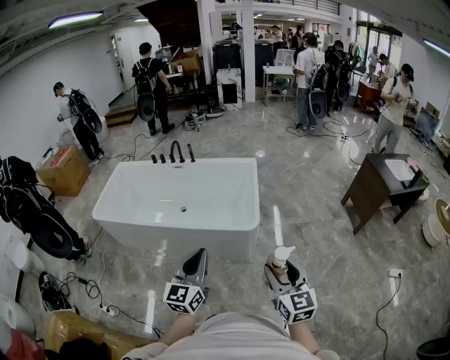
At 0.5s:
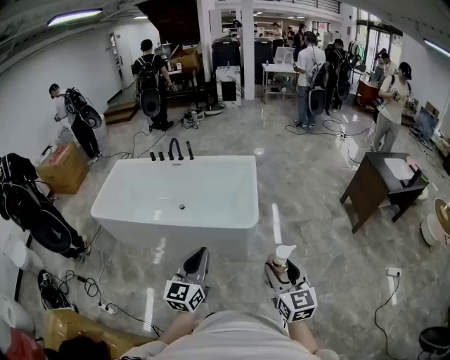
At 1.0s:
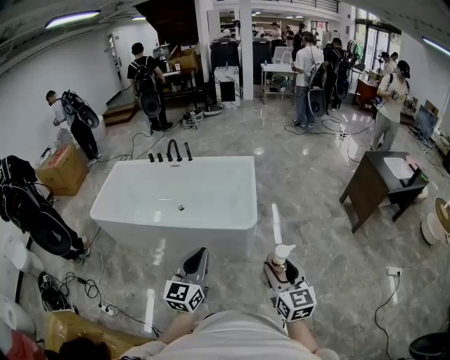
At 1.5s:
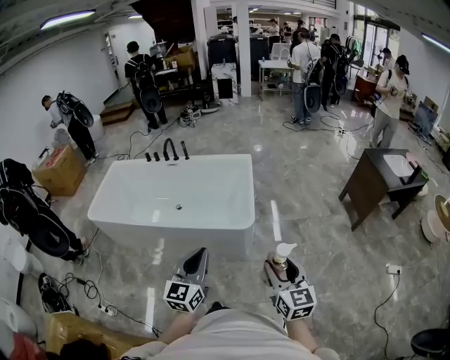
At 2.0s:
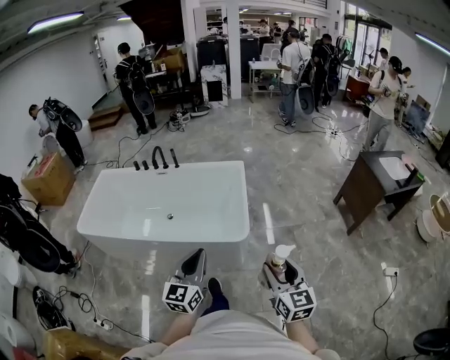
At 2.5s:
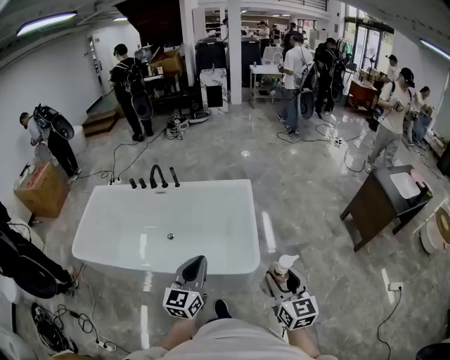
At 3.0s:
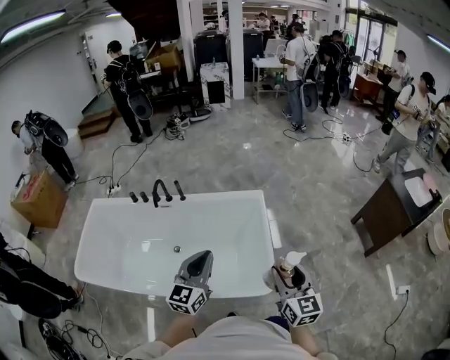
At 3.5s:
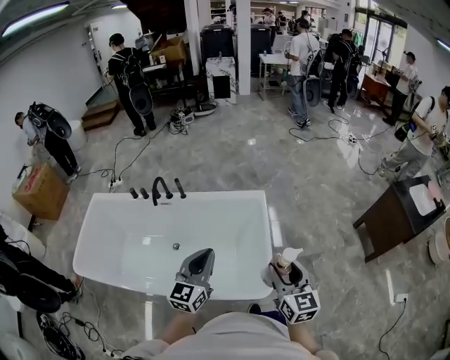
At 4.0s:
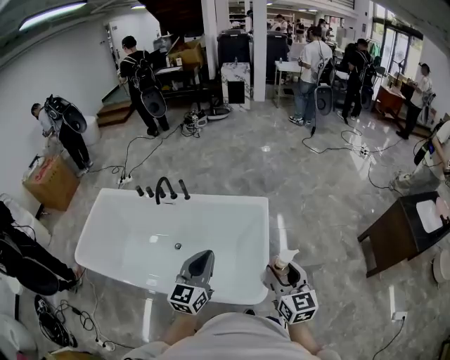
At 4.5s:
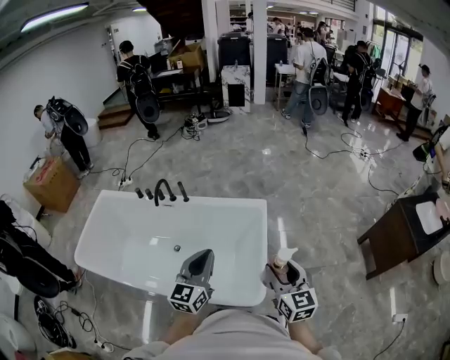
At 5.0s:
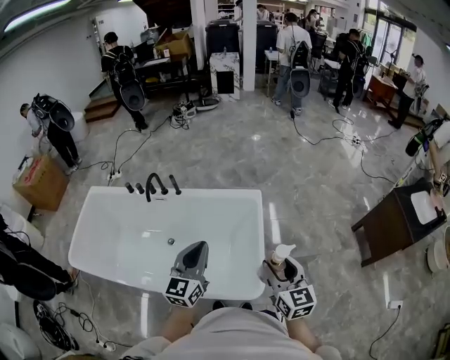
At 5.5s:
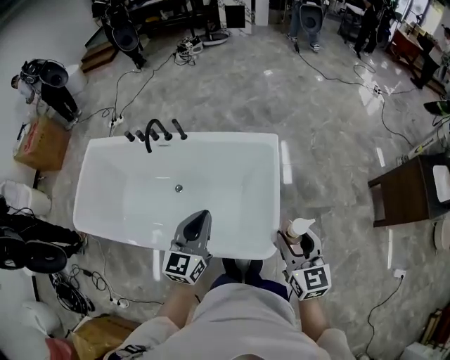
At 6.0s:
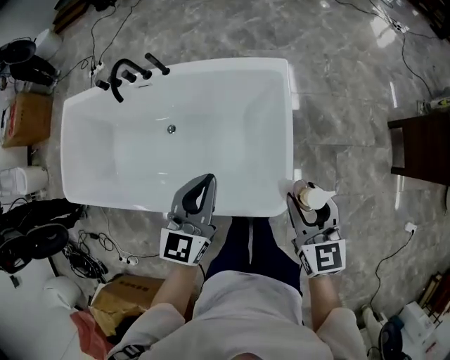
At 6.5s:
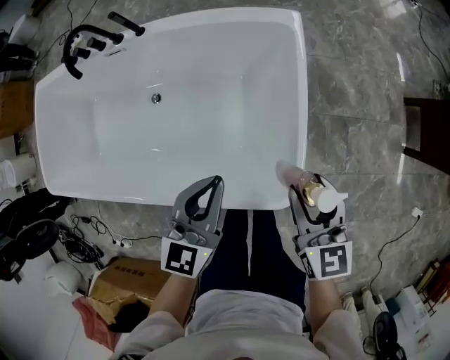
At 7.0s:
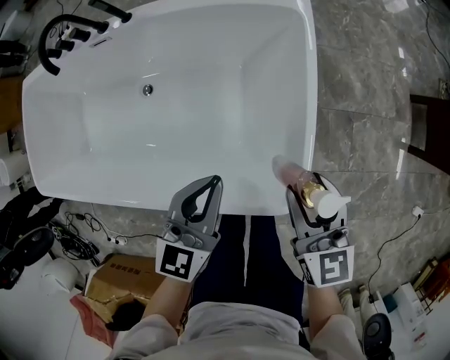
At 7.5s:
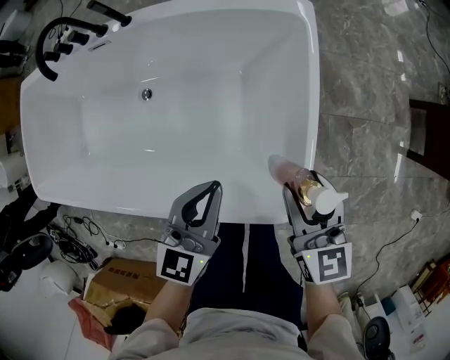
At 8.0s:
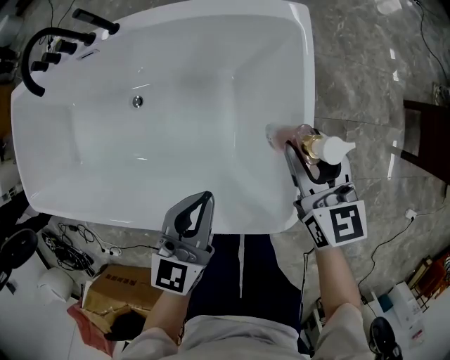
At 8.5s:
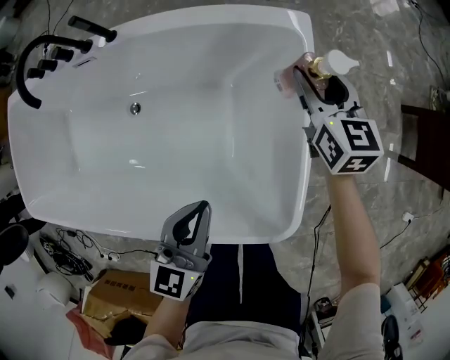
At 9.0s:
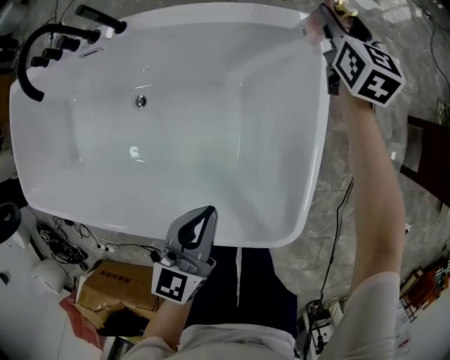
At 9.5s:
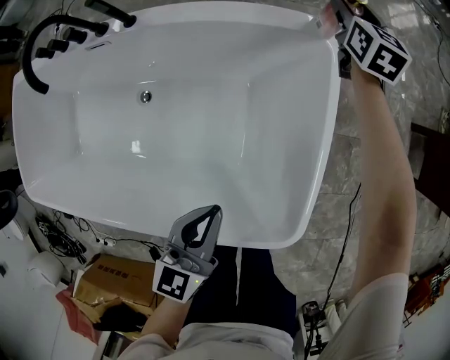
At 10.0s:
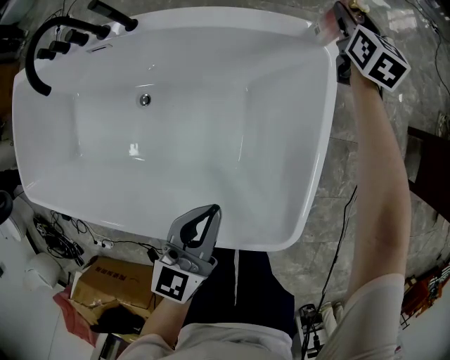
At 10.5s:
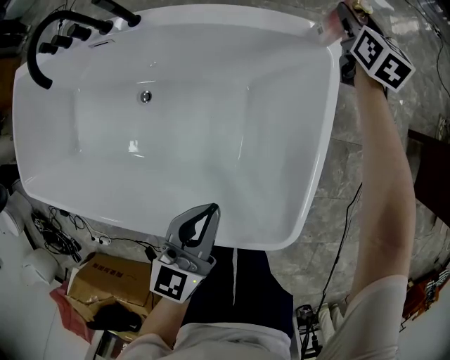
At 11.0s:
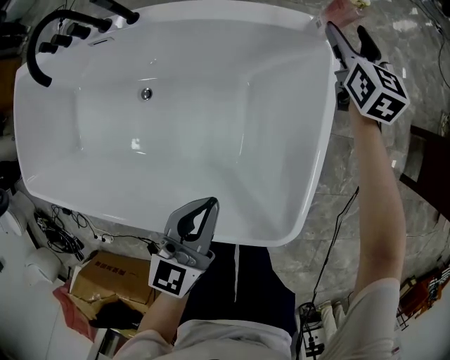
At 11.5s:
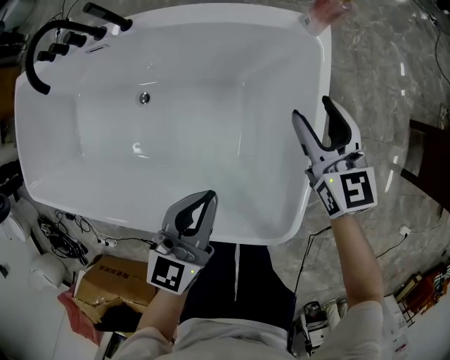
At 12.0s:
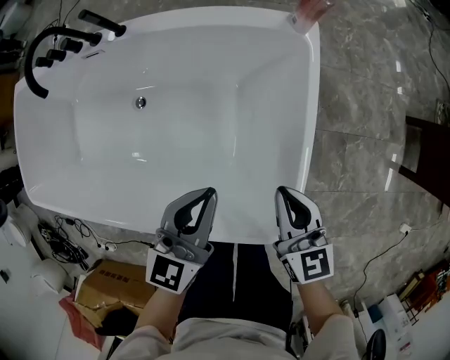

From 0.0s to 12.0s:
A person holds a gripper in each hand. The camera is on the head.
From 0.0s to 2.0s: The two grippers go roughly 10 cm forward.
From 2.0s to 4.0s: Both grippers move forward, approximately 40 cm.
From 4.0s to 6.0s: The two grippers go some 15 cm downward and forward.
From 6.0s to 8.0s: The left gripper heads downward, covering roughly 25 cm, while the right gripper heads downward and forward, covering approximately 25 cm.
From 8.0s to 10.0s: The right gripper is displaced forward by some 40 cm.
From 10.0s to 12.0s: The right gripper travels backward by roughly 40 cm, rotates some 20 degrees, and closes.

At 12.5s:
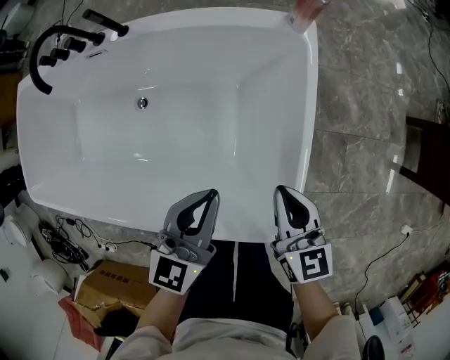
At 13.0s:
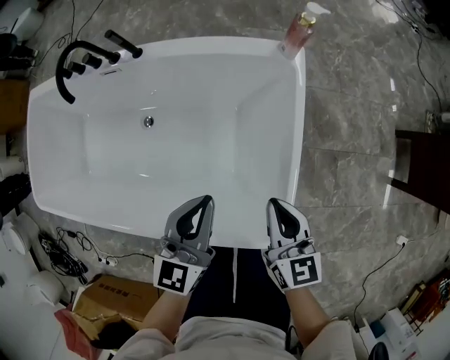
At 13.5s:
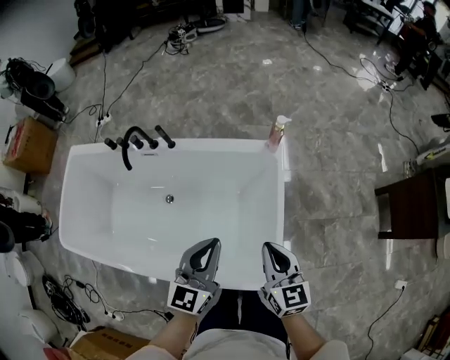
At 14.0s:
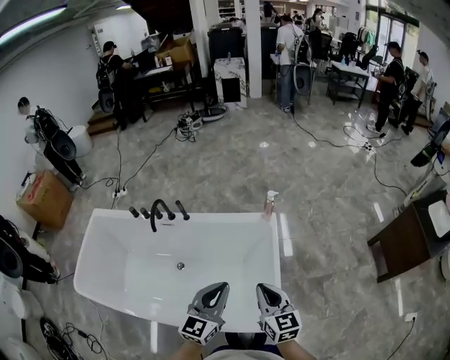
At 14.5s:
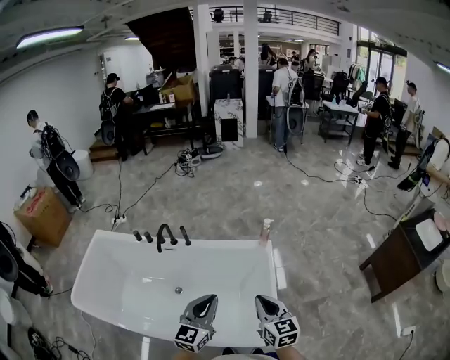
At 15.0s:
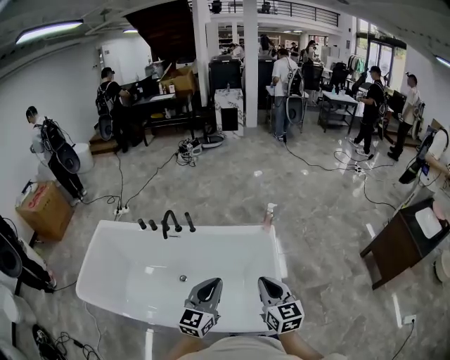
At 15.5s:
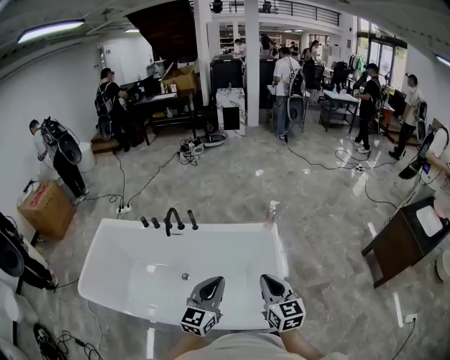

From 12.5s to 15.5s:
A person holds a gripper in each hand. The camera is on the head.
From 12.5s to 14.0s: The grippers both shift upward by approximately 30 cm.
From 14.0s to 15.5s: The right gripper shifts about 10 cm backward and upward. Meanwhile the left gripper goes about 10 cm to the left and backward.

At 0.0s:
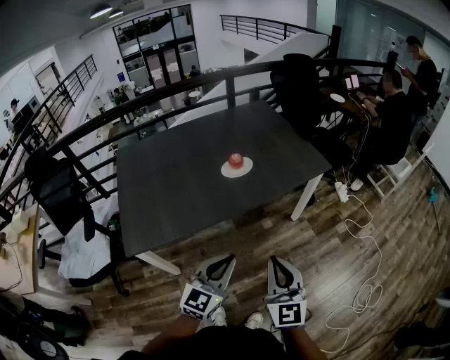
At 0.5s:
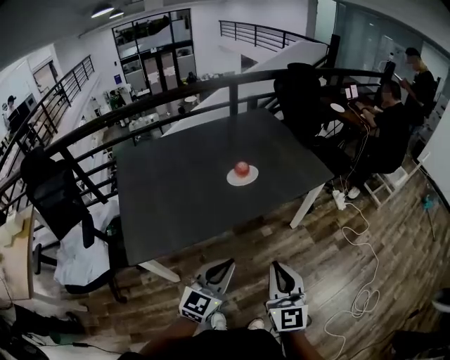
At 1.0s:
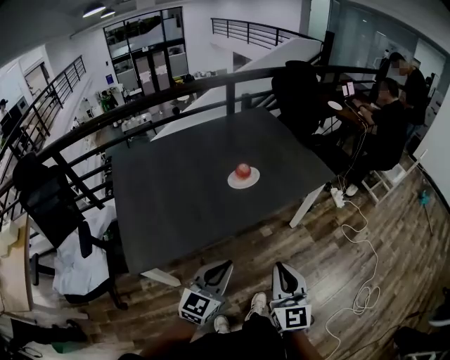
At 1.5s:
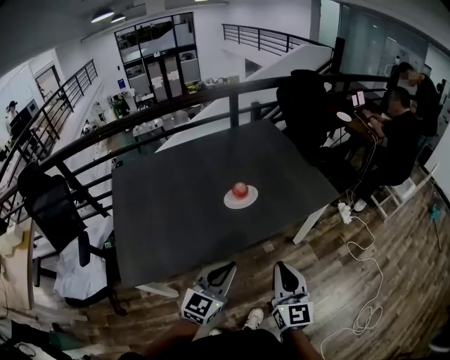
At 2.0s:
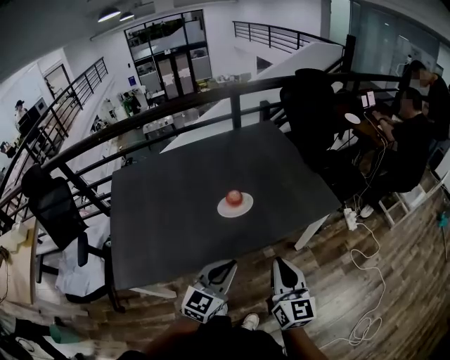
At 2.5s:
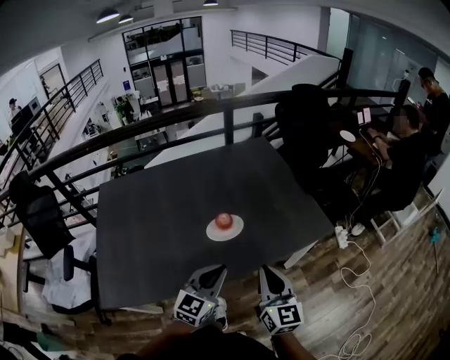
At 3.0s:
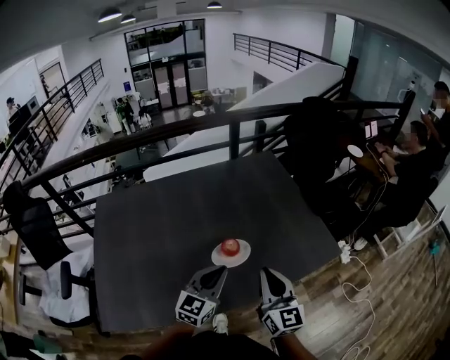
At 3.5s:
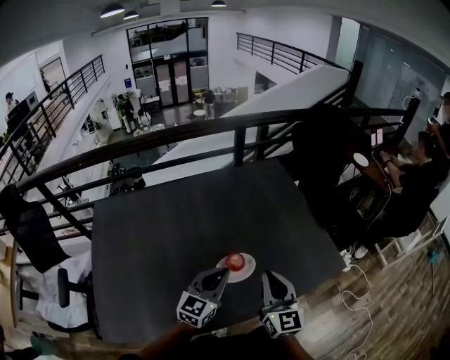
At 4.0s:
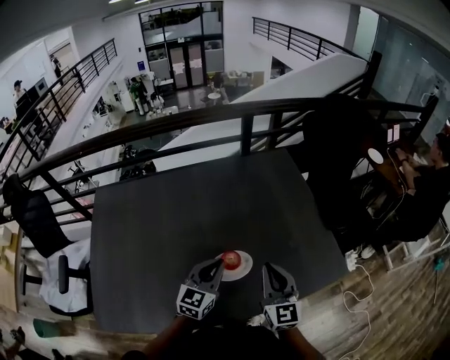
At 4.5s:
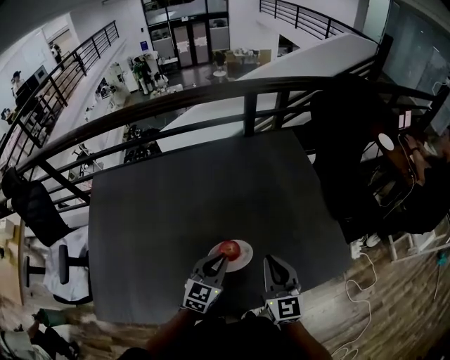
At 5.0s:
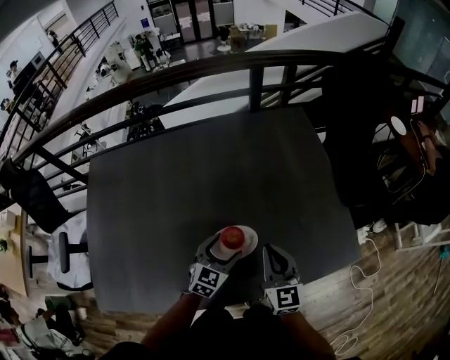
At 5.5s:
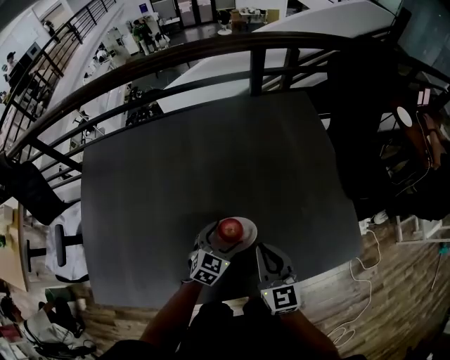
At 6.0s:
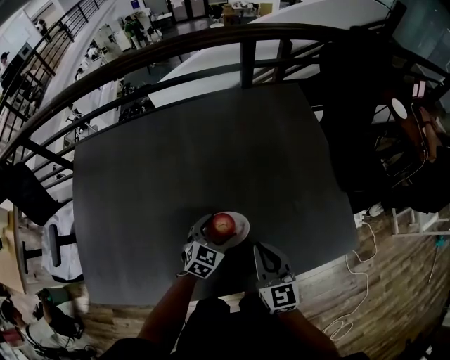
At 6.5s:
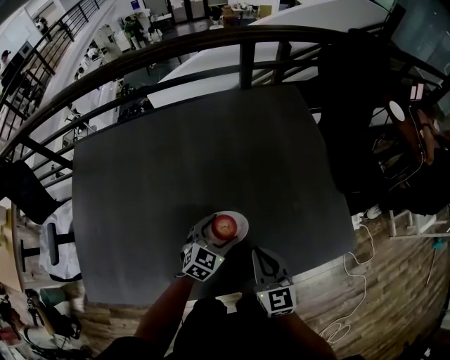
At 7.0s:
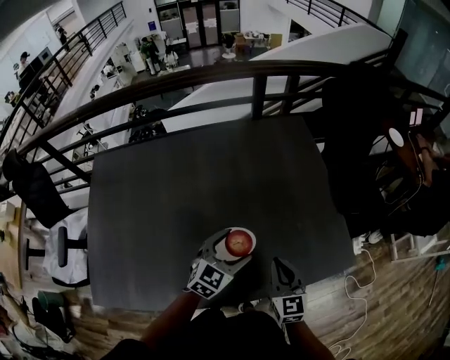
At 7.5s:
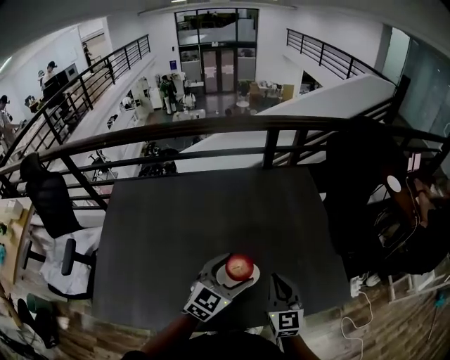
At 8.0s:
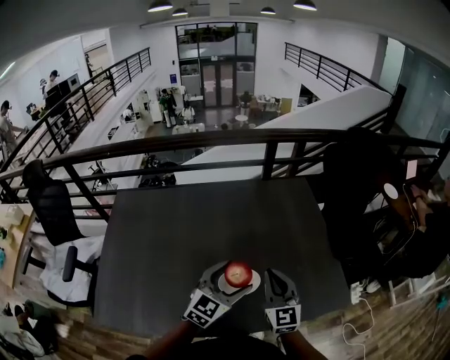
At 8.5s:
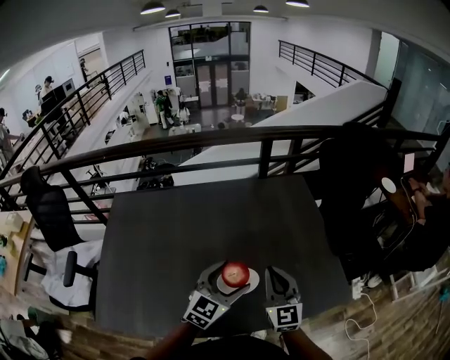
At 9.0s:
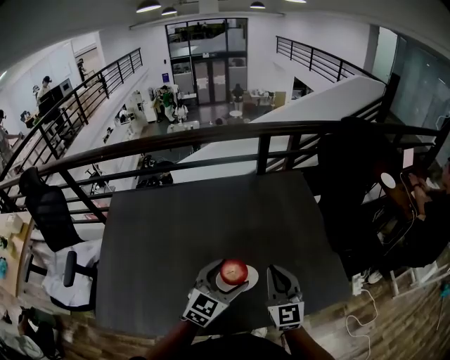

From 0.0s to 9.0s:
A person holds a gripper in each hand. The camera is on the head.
From 0.0s to 2.0s: The grippers both shift forward by approximately 20 cm.
From 2.0s to 4.5s: Both grippers travel together forward, about 30 cm.
From 4.5s to 7.0s: The left gripper goes downward and returns, roughly 10 cm each way, and opens up; the right gripper shifts some 5 cm downward.
From 7.0s to 9.0s: Both grippers travel together upward, roughly 10 cm. The right gripper turns by some 20 degrees.

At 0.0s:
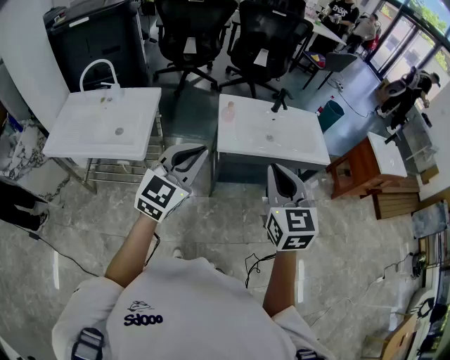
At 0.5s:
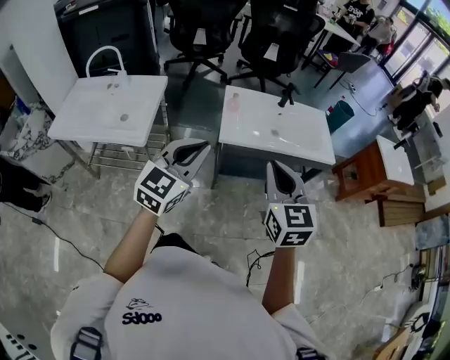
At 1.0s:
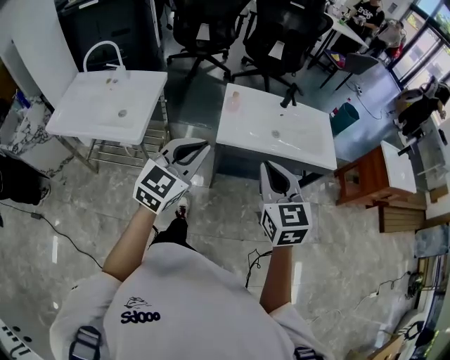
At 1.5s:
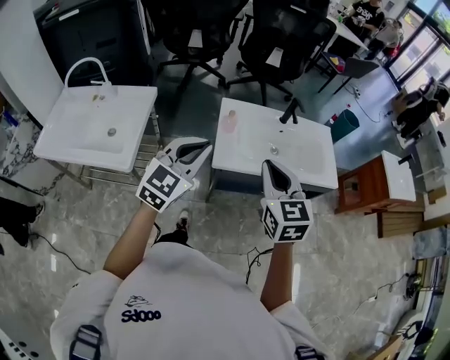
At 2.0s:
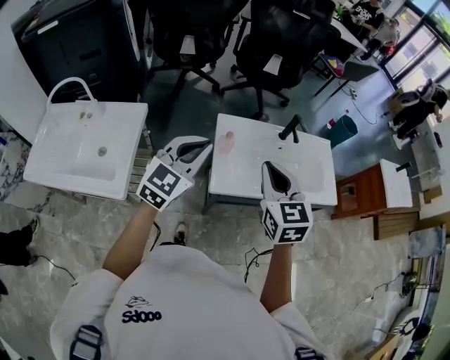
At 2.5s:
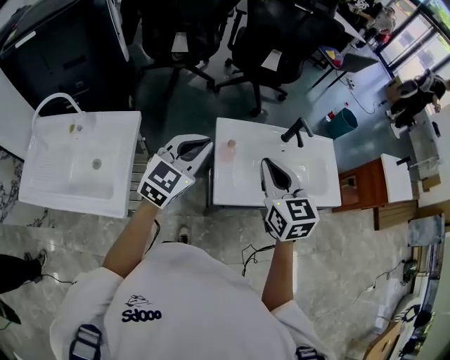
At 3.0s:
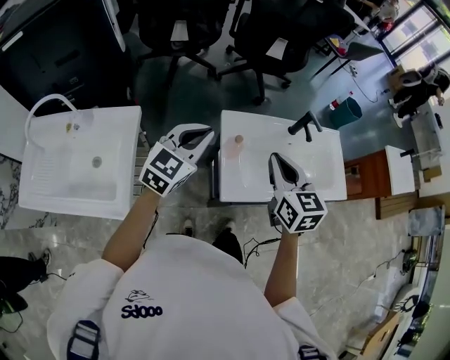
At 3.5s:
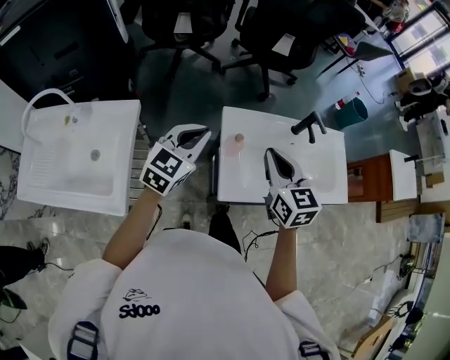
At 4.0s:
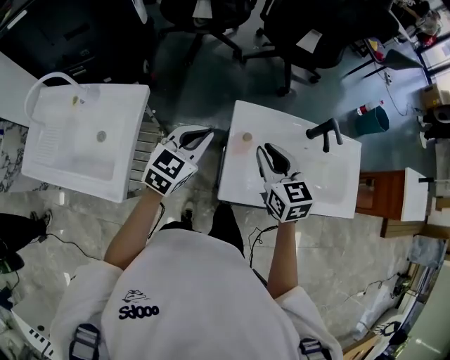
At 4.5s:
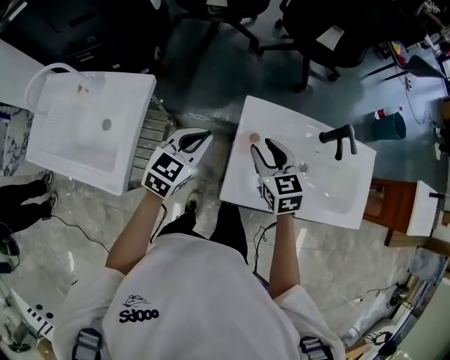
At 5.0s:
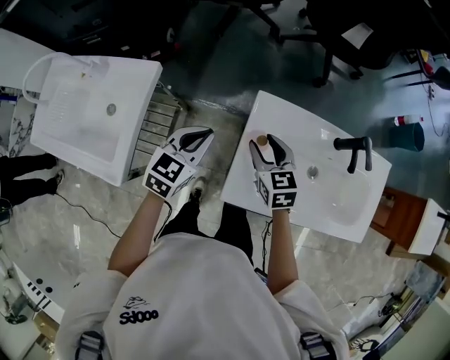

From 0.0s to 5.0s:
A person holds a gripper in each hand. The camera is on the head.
From 0.0s to 2.5s: The grippers both shift forward by some 35 cm.
From 2.5s to 5.0s: The right gripper shifts about 30 cm downward and forward, turns by roughly 30 degrees, and opens up; the left gripper shifts about 20 cm downward, and turns by approximately 30 degrees.
